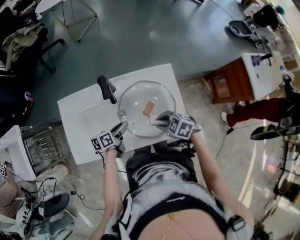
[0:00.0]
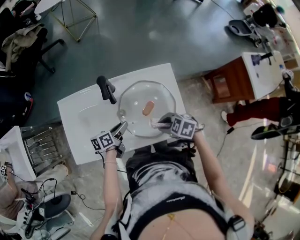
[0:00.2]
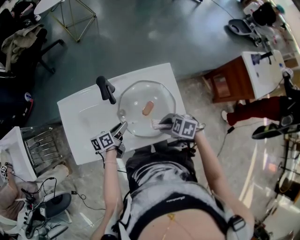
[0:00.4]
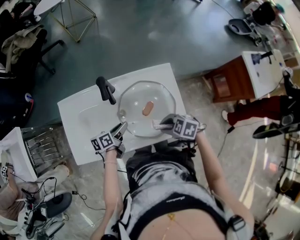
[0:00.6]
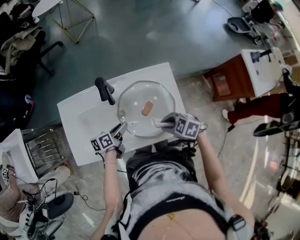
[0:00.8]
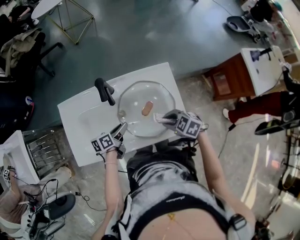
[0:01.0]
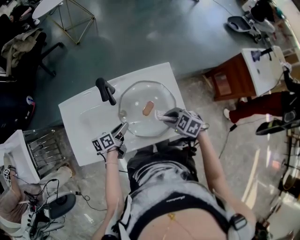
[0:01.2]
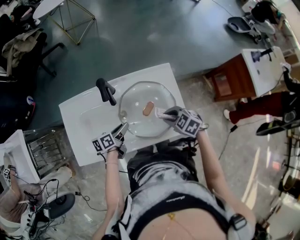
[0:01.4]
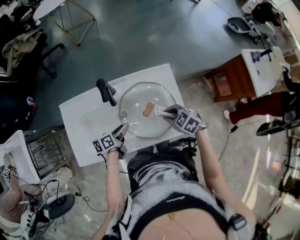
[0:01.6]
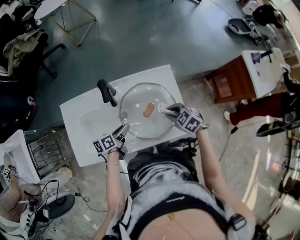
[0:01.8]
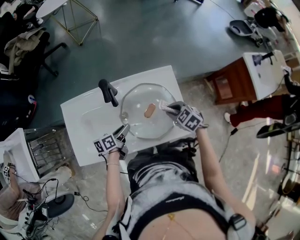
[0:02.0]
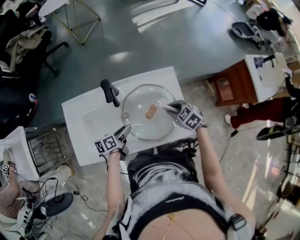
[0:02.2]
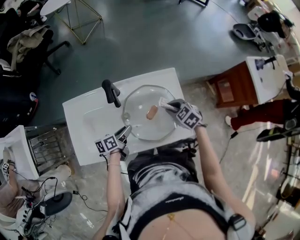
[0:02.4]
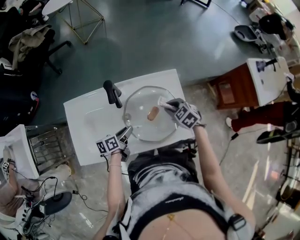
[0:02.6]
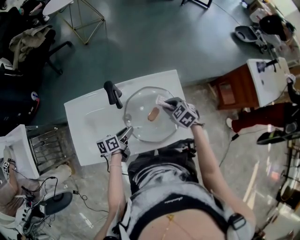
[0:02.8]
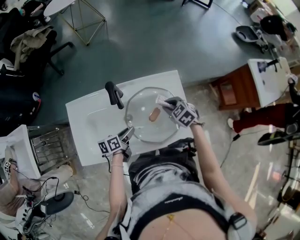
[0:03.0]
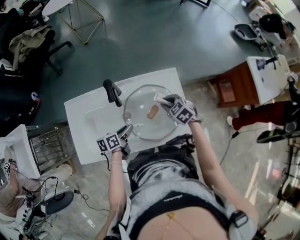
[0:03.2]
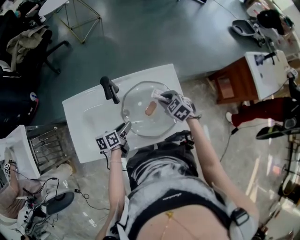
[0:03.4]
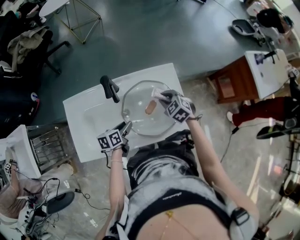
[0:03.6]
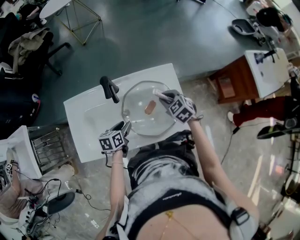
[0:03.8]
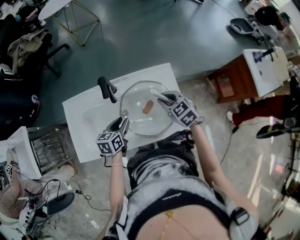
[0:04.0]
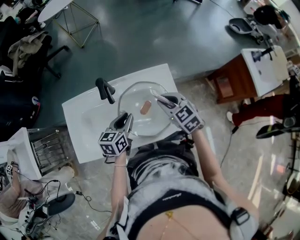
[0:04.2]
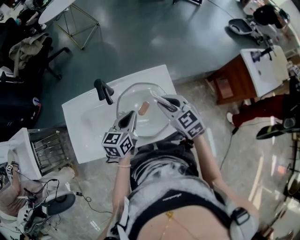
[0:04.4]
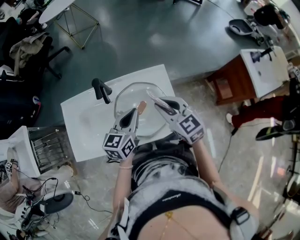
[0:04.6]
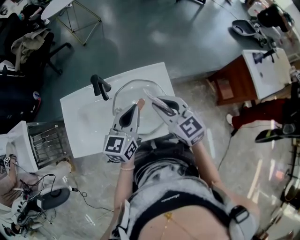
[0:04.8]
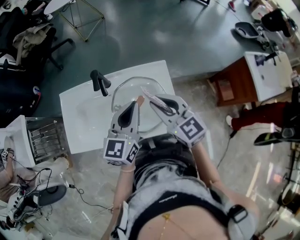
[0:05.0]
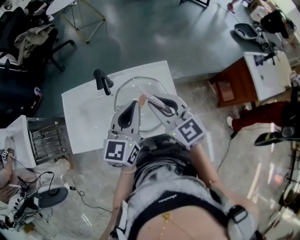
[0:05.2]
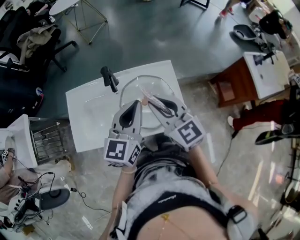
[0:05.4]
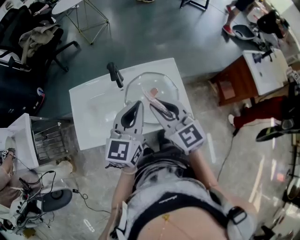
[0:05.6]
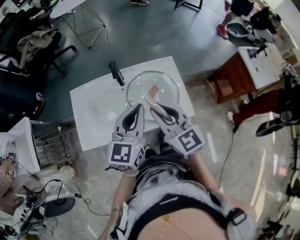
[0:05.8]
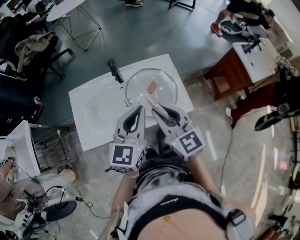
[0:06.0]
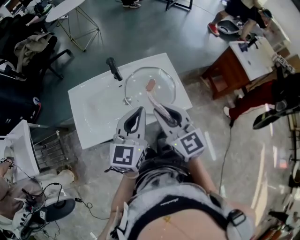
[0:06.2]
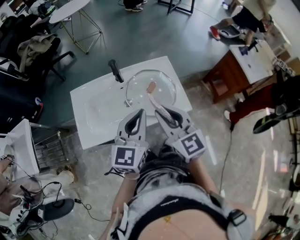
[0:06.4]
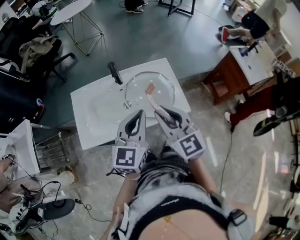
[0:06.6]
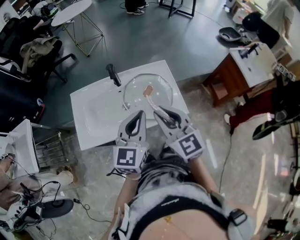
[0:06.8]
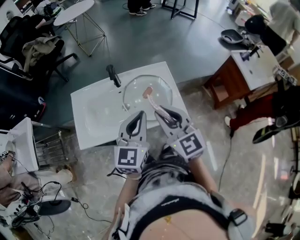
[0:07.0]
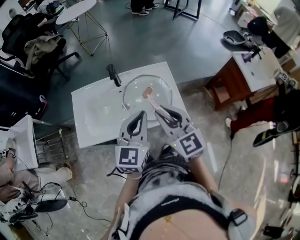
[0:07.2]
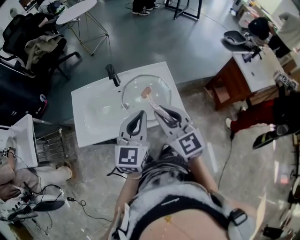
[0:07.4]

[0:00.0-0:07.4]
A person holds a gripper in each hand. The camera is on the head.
0:00.0 to 0:01.4: The grippers move only a little.
0:01.4 to 0:03.0: The right gripper goes about 10 cm forward.
0:03.0 to 0:04.4: The right gripper is displaced upward by roughly 15 cm, and rotates about 30 degrees. Meanwhile the left gripper heads upward and to the right, covering approximately 20 cm, changes its angle by roughly 40 degrees, and closes.
0:04.4 to 0:06.0: The right gripper shifts about 25 cm backward, to the left and upward, and turns by about 20 degrees, while the left gripper heads upward and backward, covering some 20 cm, and rotates roughly 30 degrees.
0:06.0 to 0:07.4: Both grippers travel together to the right, roughly 5 cm.

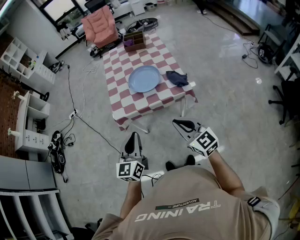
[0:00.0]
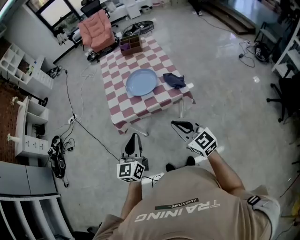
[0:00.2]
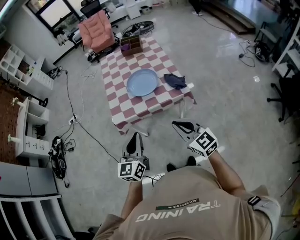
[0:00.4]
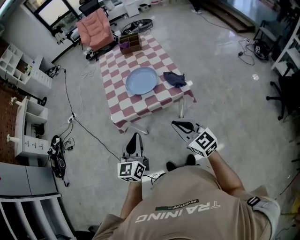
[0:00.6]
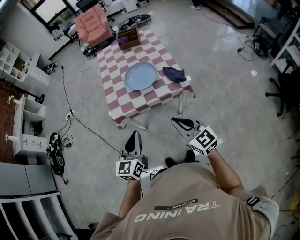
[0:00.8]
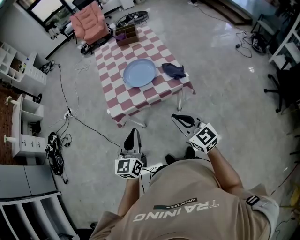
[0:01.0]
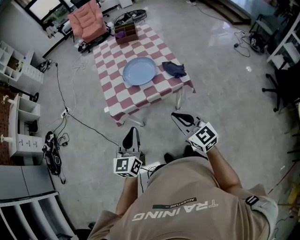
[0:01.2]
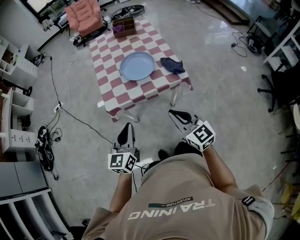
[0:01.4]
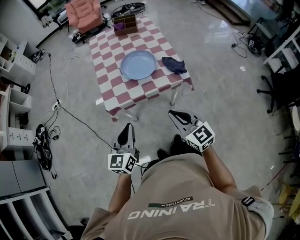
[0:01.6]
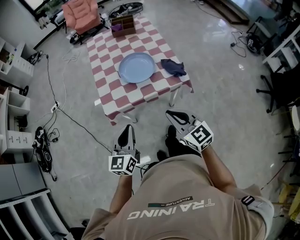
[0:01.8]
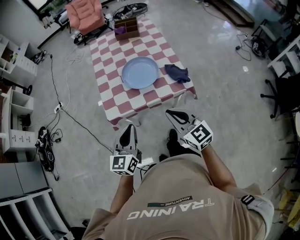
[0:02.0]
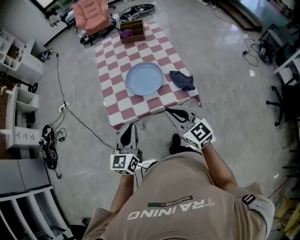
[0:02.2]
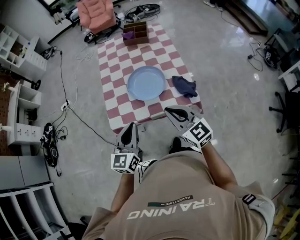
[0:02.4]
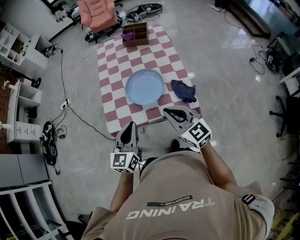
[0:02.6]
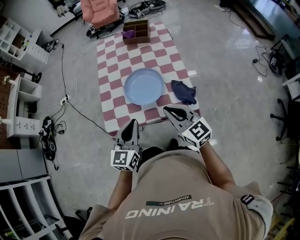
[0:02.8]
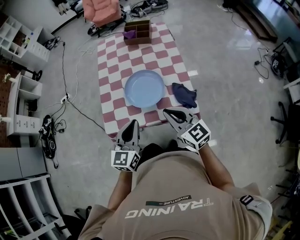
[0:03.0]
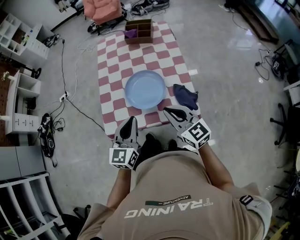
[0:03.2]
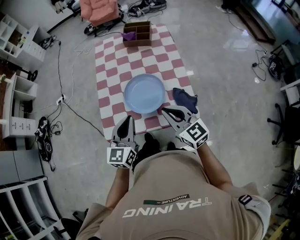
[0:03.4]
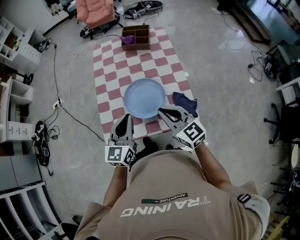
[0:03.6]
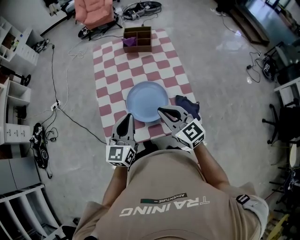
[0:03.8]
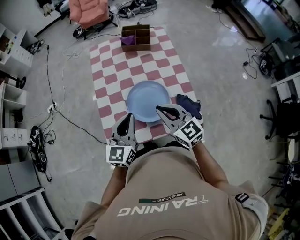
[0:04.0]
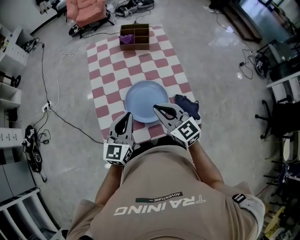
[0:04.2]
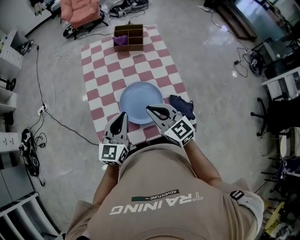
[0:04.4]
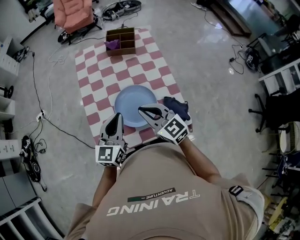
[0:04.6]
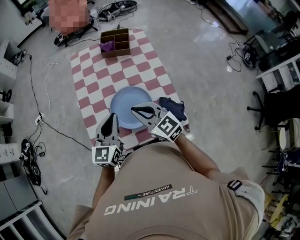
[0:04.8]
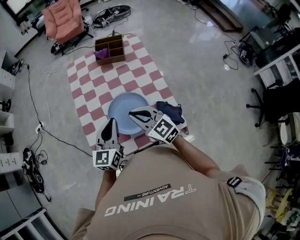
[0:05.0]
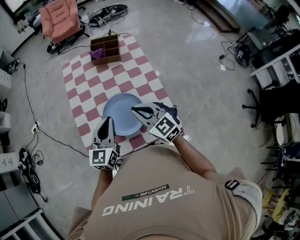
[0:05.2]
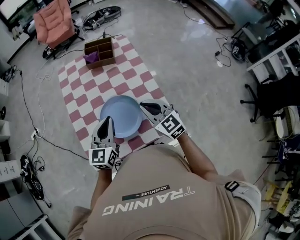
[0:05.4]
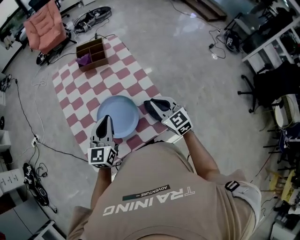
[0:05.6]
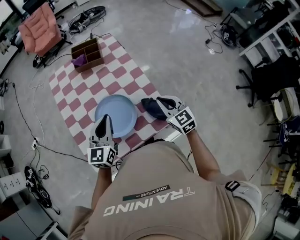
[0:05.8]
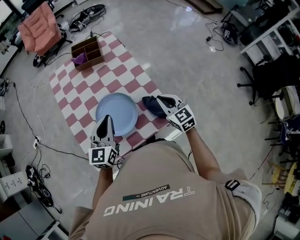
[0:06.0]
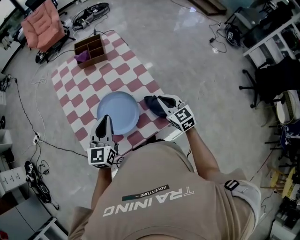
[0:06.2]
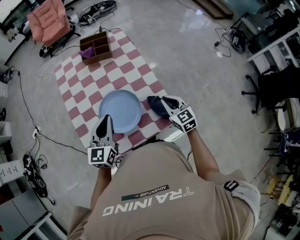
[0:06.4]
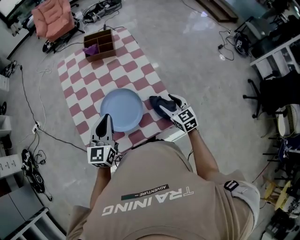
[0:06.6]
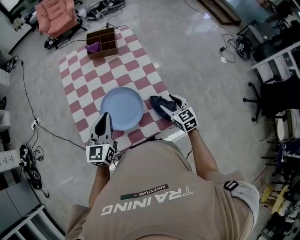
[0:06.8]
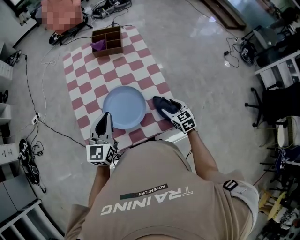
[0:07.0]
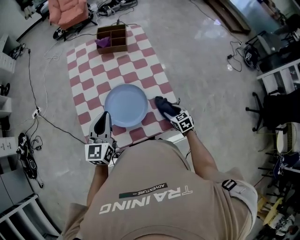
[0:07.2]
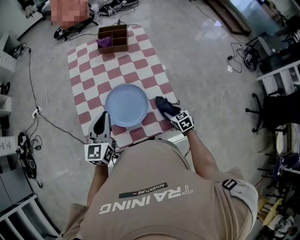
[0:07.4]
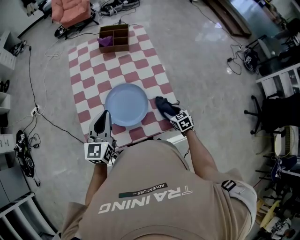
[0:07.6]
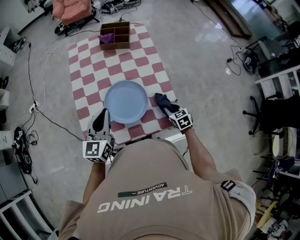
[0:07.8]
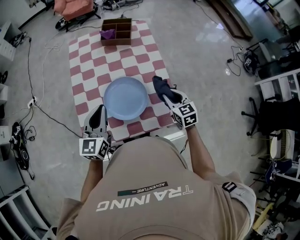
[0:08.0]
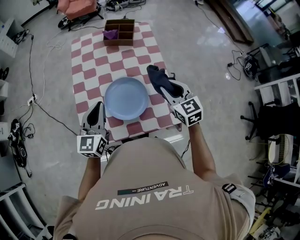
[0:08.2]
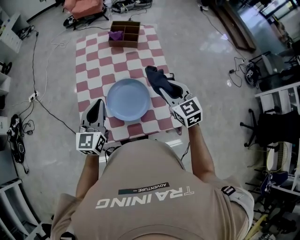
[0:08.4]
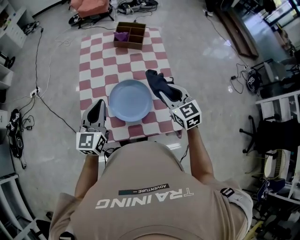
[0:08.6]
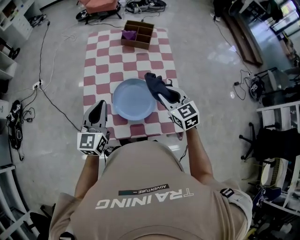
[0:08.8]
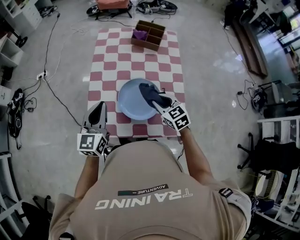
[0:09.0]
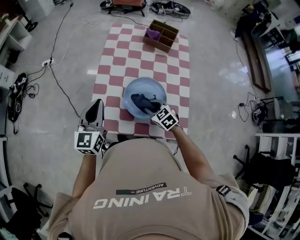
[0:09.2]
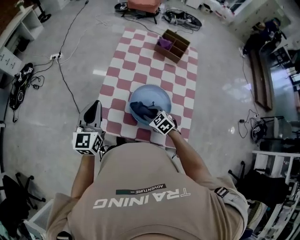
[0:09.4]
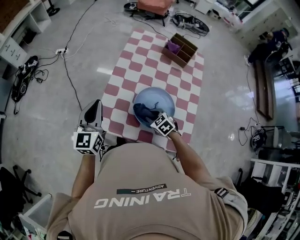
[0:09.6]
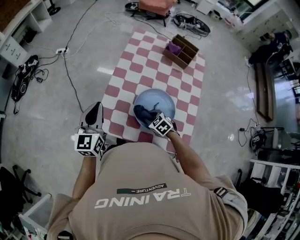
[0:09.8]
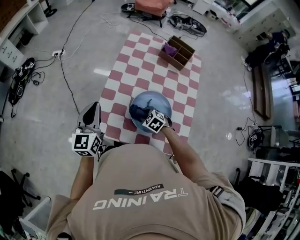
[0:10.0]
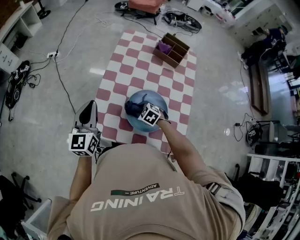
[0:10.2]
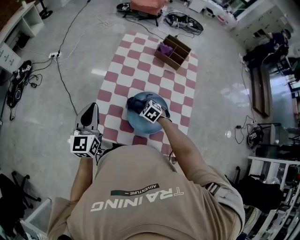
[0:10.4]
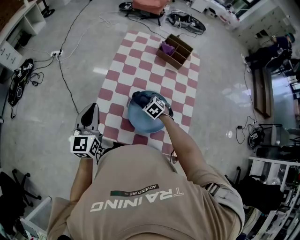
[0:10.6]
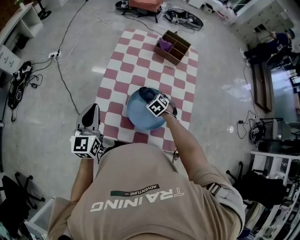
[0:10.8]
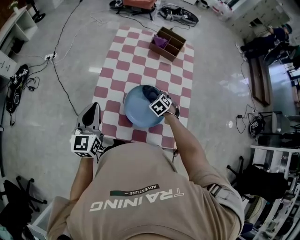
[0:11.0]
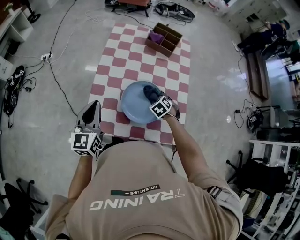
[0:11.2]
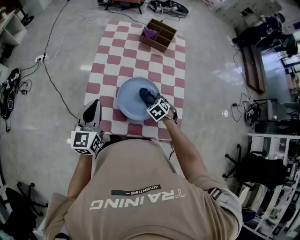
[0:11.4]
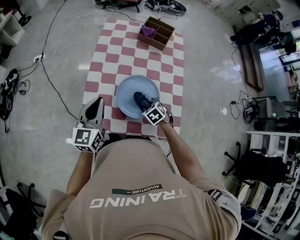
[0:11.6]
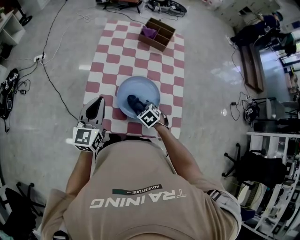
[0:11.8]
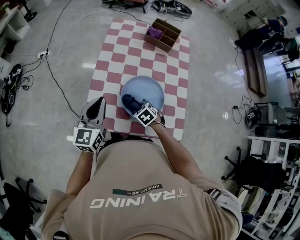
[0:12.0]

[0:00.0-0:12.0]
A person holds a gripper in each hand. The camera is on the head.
0:00.0 to 0:01.6: The left gripper changes place by some 5 cm. Meanwhile the right gripper shifts by approximately 5 cm.
0:01.6 to 0:03.0: The right gripper travels forward by about 20 cm. Meanwhile the left gripper travels forward and to the right by about 20 cm.
0:03.0 to 0:04.4: The right gripper goes some 15 cm forward and to the left, while the left gripper heads forward, covering about 15 cm.
0:04.4 to 0:06.0: The left gripper goes roughly 10 cm to the right, while the right gripper moves to the right, roughly 20 cm, and swivels some 30 degrees.
0:06.0 to 0:07.6: The right gripper moves downward, about 15 cm, swivels some 30 degrees, and opens; the left gripper shifts roughly 5 cm to the left.
0:07.6 to 0:09.0: The left gripper goes roughly 10 cm to the left. Meanwhile the right gripper shifts approximately 25 cm to the left, upward and forward, swivels roughly 30 degrees, and closes up.
0:09.0 to 0:10.4: The right gripper travels downward by roughly 15 cm, and swivels about 40 degrees. Meanwhile the left gripper ends up roughly 10 cm from where it was.
0:10.4 to 0:12.0: The left gripper moves roughly 5 cm; the right gripper shifts by some 10 cm.

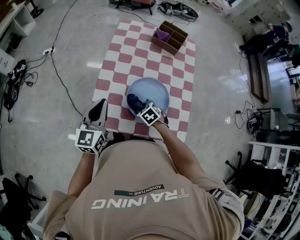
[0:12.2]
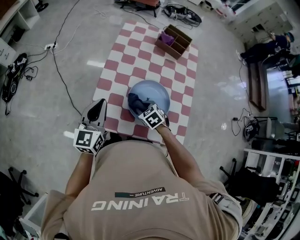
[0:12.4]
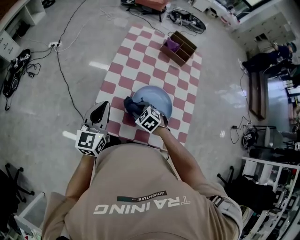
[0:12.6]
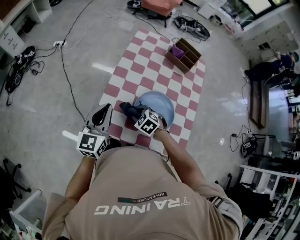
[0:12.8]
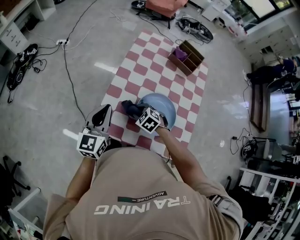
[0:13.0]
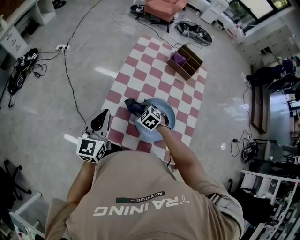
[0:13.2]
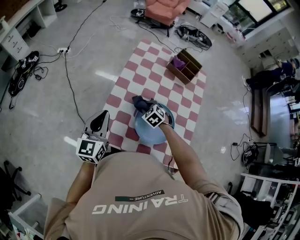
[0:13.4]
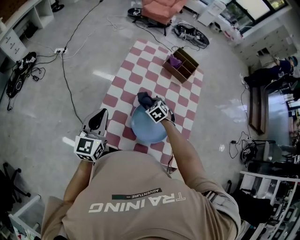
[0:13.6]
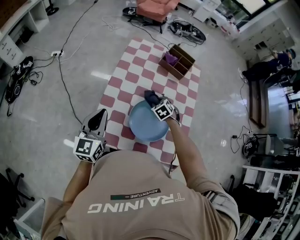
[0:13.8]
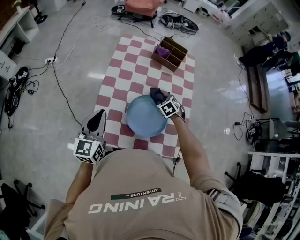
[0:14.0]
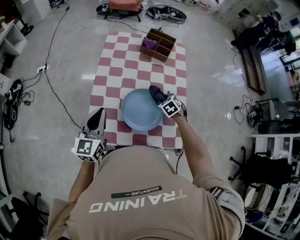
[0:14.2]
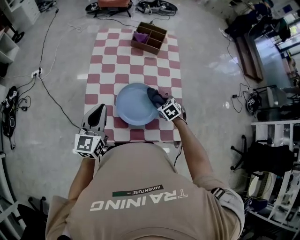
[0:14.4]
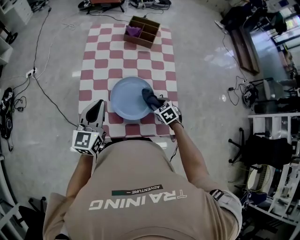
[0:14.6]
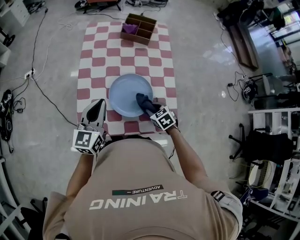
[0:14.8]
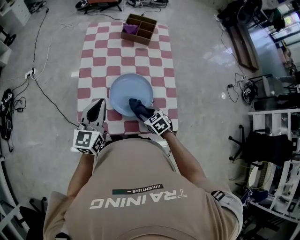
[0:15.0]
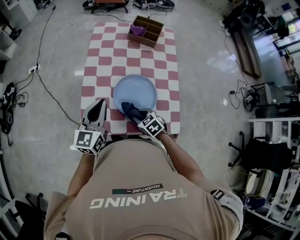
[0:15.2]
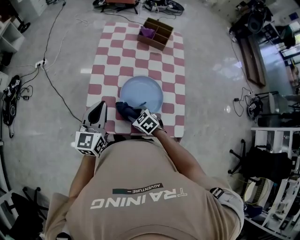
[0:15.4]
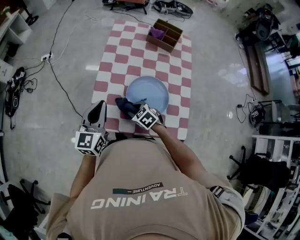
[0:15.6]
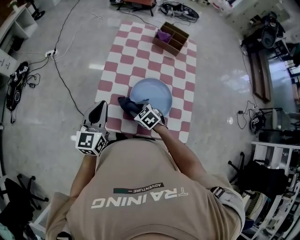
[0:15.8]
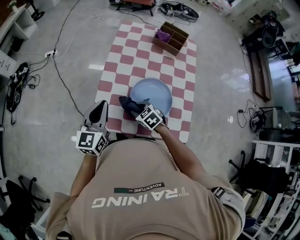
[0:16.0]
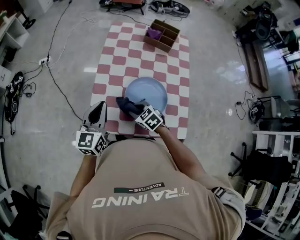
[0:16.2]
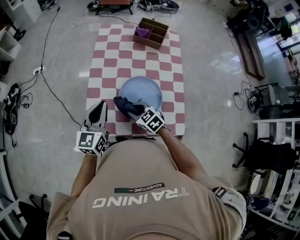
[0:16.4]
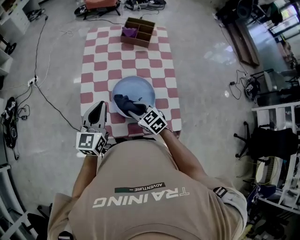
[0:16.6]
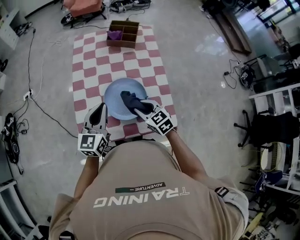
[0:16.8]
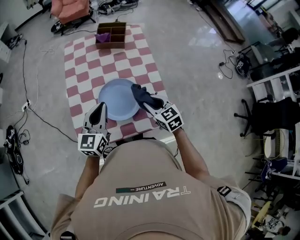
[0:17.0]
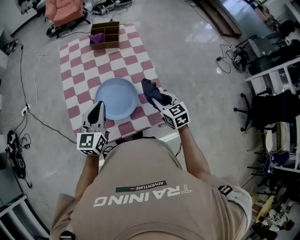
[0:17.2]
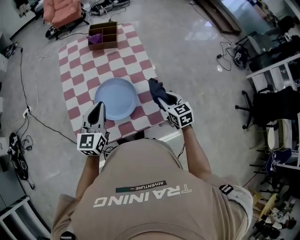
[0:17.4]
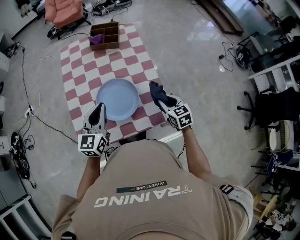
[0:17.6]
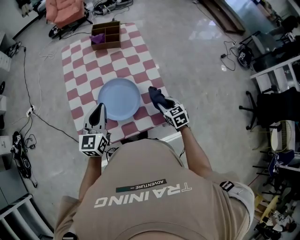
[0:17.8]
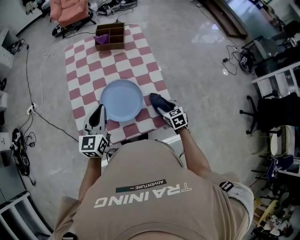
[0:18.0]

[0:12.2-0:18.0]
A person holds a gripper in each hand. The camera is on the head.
0:12.2 to 0:13.6: The right gripper heads forward, covering roughly 15 cm; the left gripper ends up roughly 5 cm from where it was.
0:13.6 to 0:15.0: The left gripper heads to the right, covering some 10 cm; the right gripper travels backward and to the right by some 25 cm, and changes its angle by some 30 degrees.
0:15.0 to 0:16.6: The right gripper is displaced upward, to the left and forward by roughly 10 cm. Meanwhile the left gripper goes to the left and returns, about 10 cm each way.
0:16.6 to 0:18.0: The right gripper travels to the right by about 25 cm, rotates about 40 degrees, and opens up. The left gripper moves to the right, roughly 5 cm.
